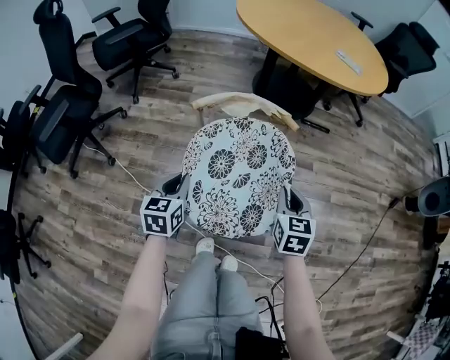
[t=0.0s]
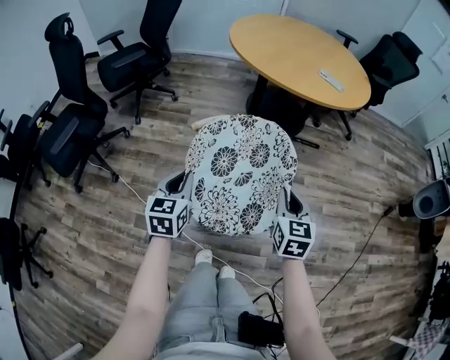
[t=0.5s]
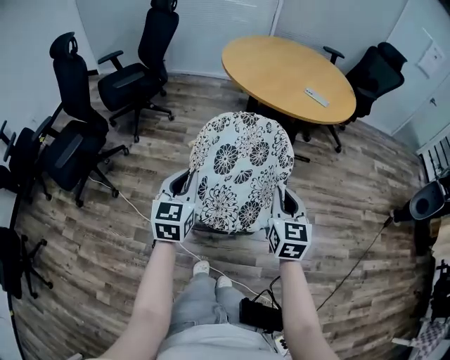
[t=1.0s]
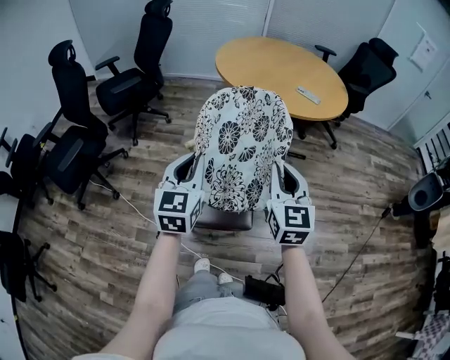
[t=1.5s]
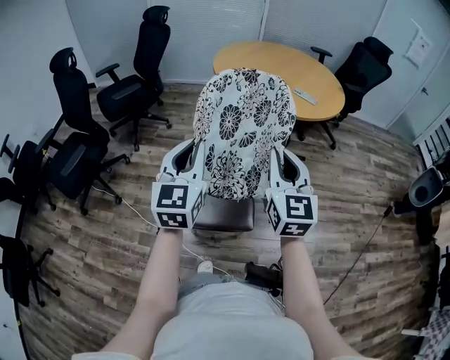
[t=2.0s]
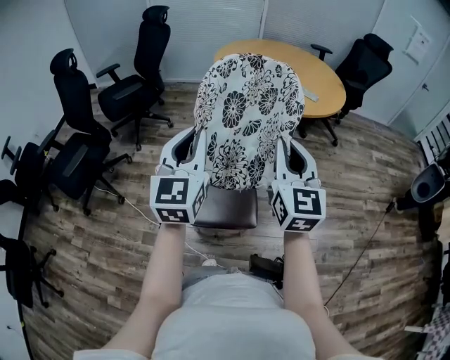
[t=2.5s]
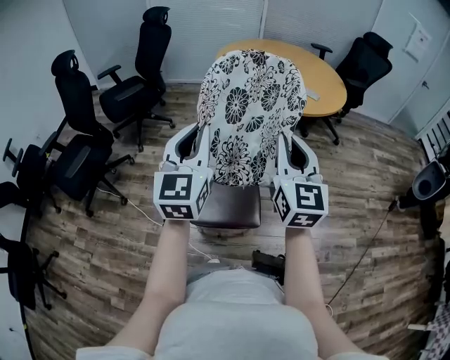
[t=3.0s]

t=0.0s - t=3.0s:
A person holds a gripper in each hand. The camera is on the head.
t=0.0s - t=1.5s: The two grippers go roughly 30 cm upward. The left gripper changes its angle by roughly 30 degrees; the right gripper changes its angle by approximately 30 degrees.
t=1.5s - t=3.0s: The grippers both shift upward by approximately 10 cm.

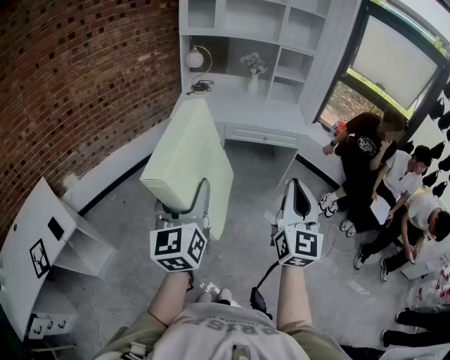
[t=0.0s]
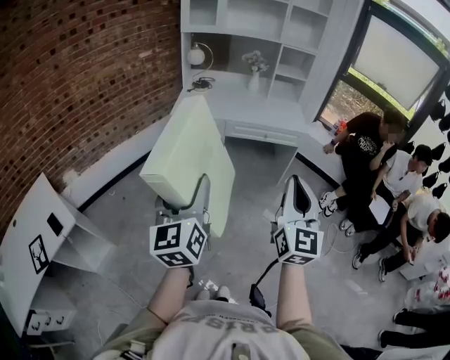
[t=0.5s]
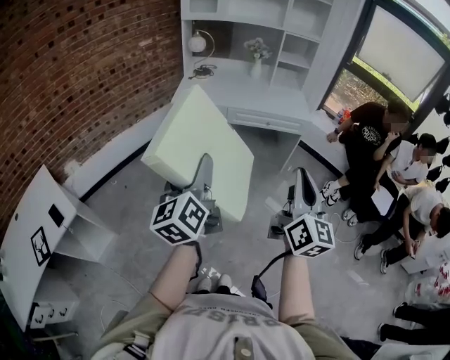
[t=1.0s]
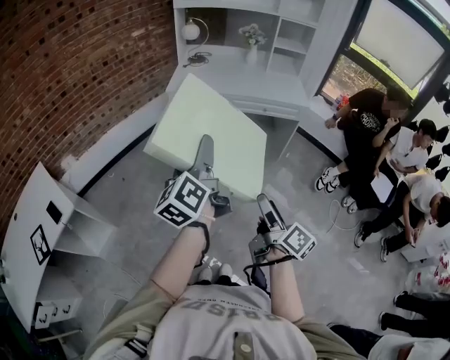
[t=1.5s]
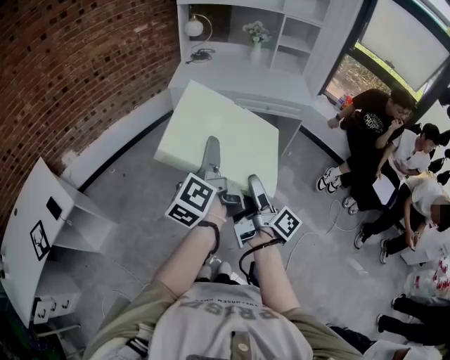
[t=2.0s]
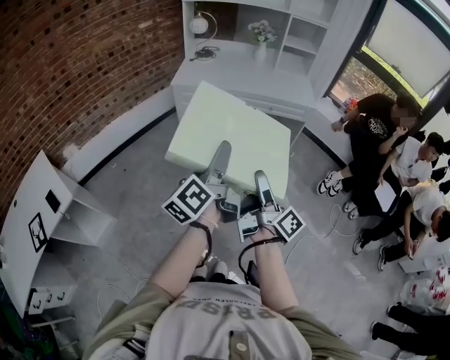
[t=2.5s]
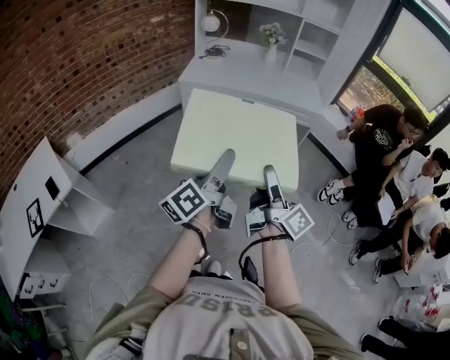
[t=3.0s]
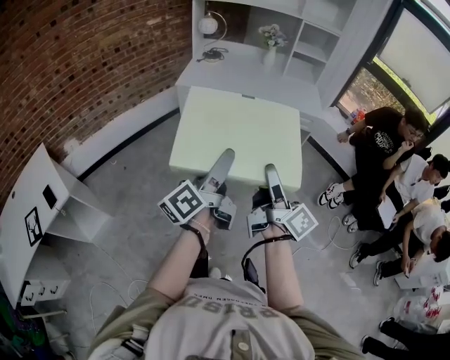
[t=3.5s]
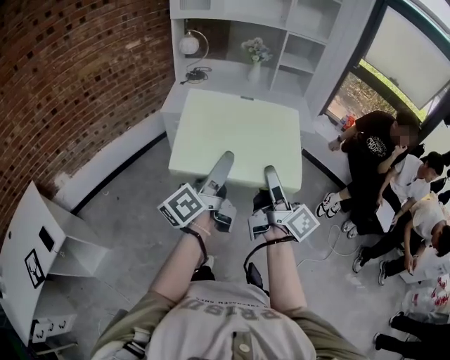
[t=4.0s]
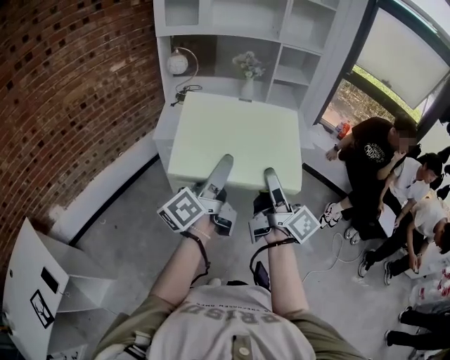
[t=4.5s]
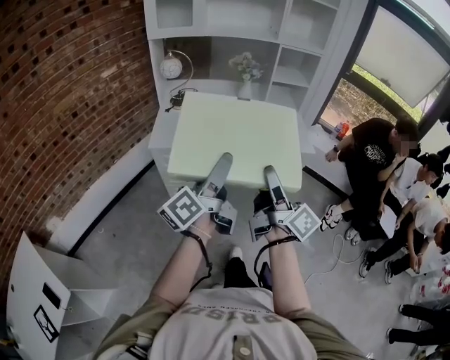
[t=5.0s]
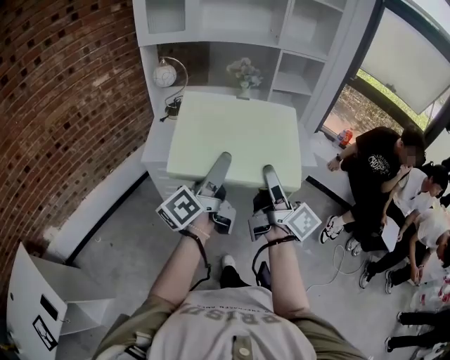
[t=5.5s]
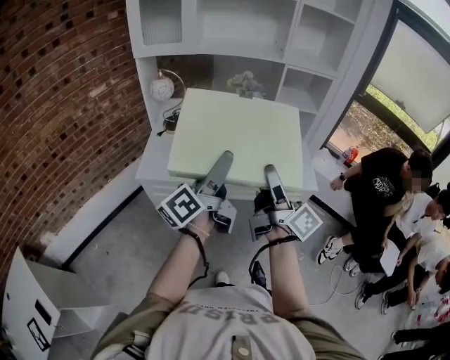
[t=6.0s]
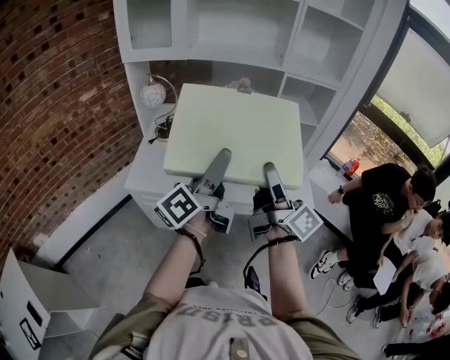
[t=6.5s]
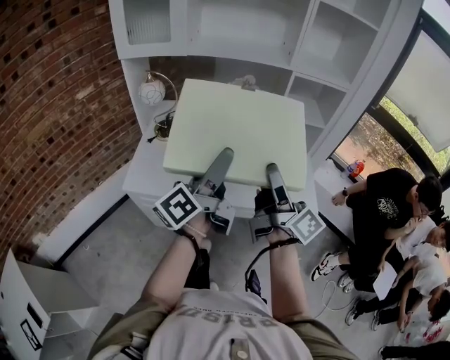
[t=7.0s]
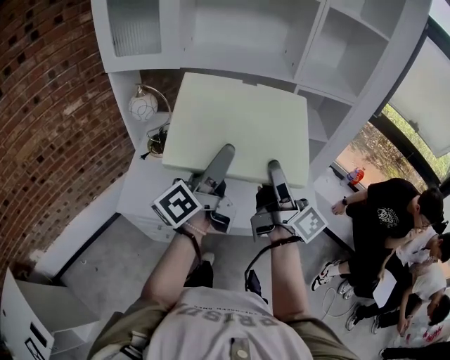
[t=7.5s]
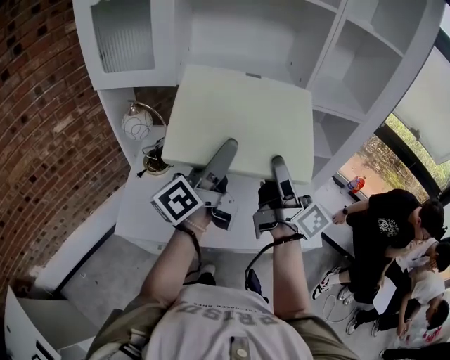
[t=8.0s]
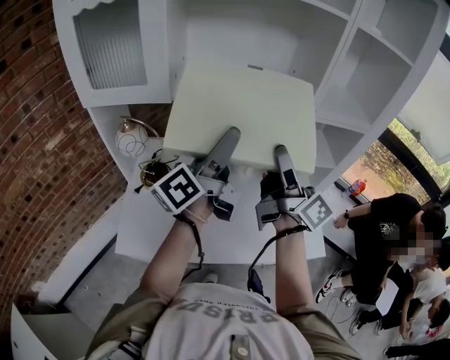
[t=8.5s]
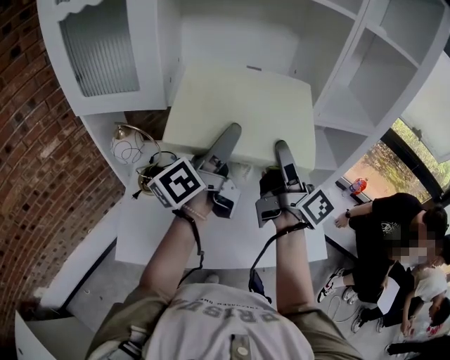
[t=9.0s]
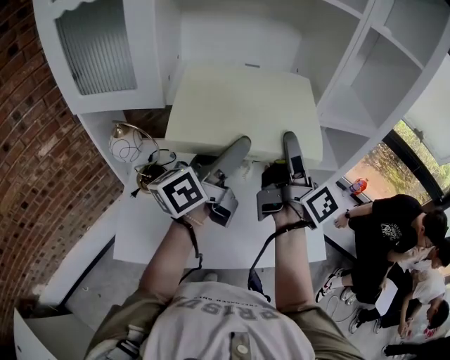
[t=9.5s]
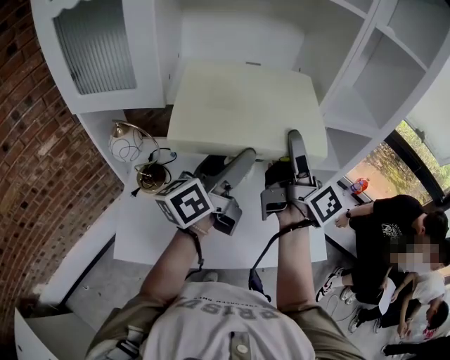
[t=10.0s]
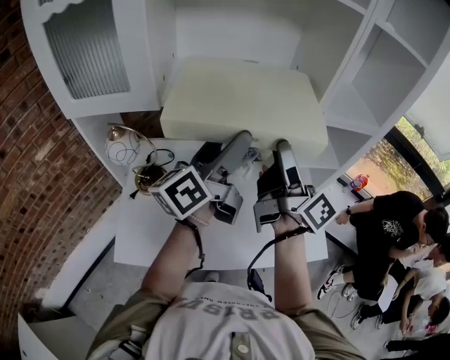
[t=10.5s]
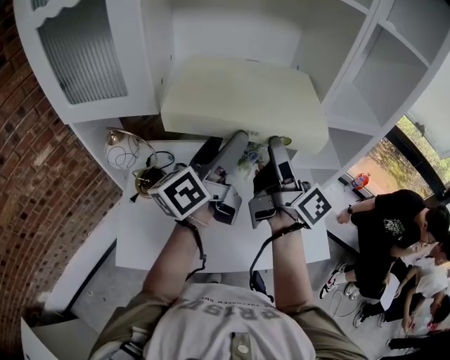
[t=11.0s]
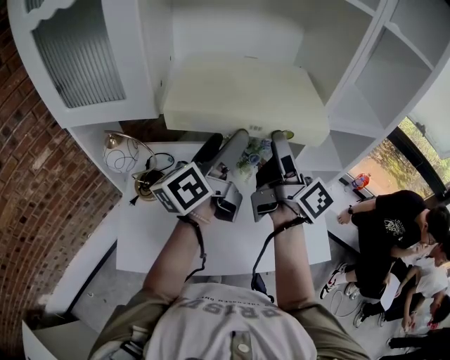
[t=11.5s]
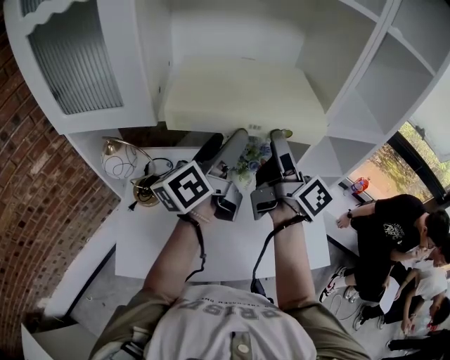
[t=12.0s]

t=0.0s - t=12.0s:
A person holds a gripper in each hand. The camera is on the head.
t=0.0s - t=2.0s: The right gripper shifts about 20 cm downward and to the left, rotates around the line of its fingers by some 90 degrees, clockwise from behind, and opens up. The left gripper travels downward and forward by some 10 cm, and rolls counterclockwise, seen from behind, by approximately 50 degrees.
t=2.0s - t=4.0s: The right gripper shifts approximately 20 cm forward and upward, and changes its angle by roughly 20 degrees; the left gripper shifts about 15 cm forward and to the right, and swivels roughly 30 degrees.
t=4.0s - t=6.0s: Both grippers travel together forward, about 35 cm.
t=6.0s - t=8.0s: The grippers both shift forward by roughly 30 cm.
t=8.0s - t=10.0s: The two grippers go roughly 10 cm forward.
t=10.0s - t=12.0s: Both grippers travel together forward, roughly 5 cm.

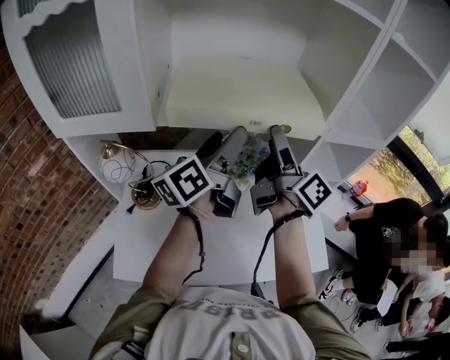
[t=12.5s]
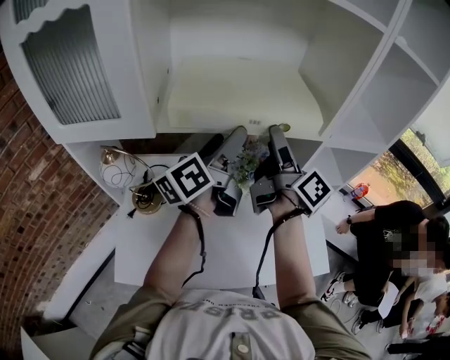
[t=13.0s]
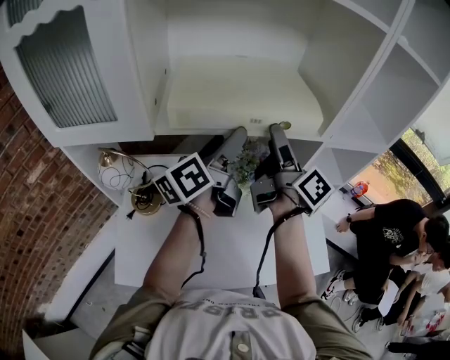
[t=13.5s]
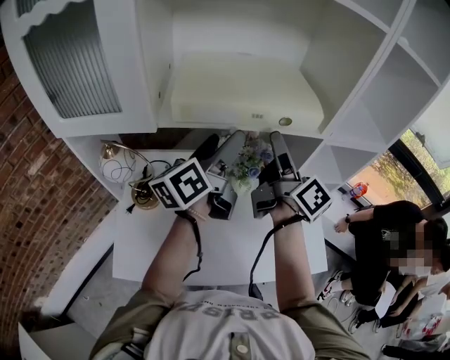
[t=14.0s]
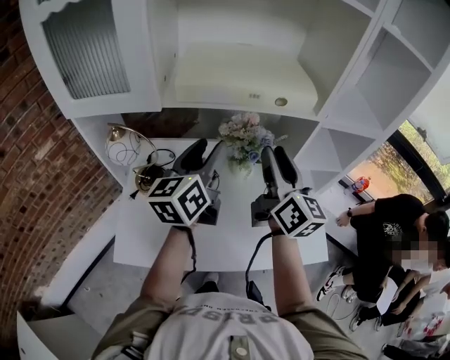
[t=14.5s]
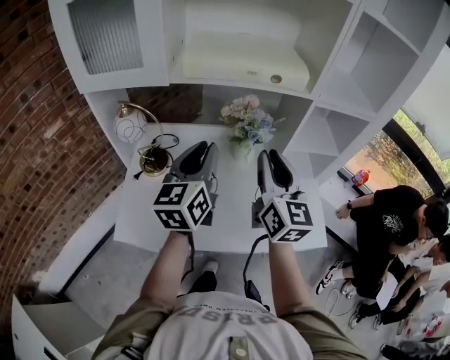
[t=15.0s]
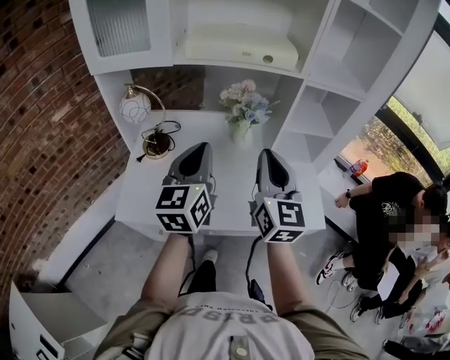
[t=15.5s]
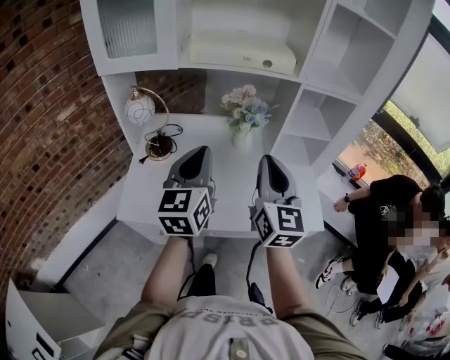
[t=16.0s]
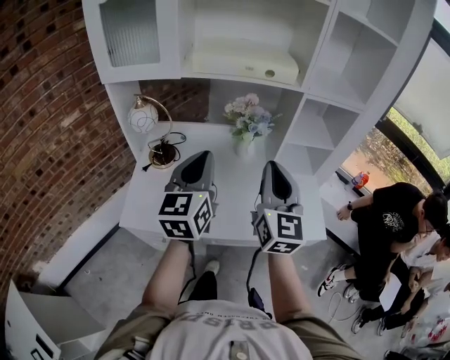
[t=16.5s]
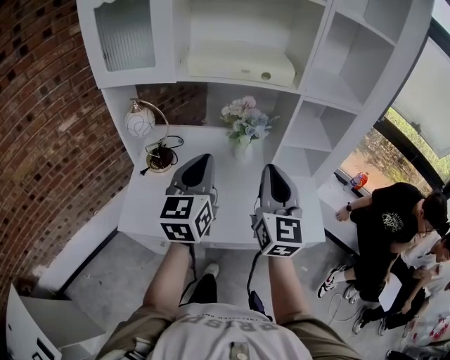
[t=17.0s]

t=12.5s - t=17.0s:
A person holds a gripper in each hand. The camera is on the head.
t=12.5s - t=14.5s: Both grippers travel together backward, roughly 5 cm. The left gripper turns by some 30 degrees, and closes up. The right gripper changes its angle by some 40 degrees, and closes up.
t=14.5s - t=17.0s: Both grippers move backward, approximately 20 cm. The right gripper rotates roughly 30 degrees, while the left gripper changes its angle by some 20 degrees, and closes its fingers.

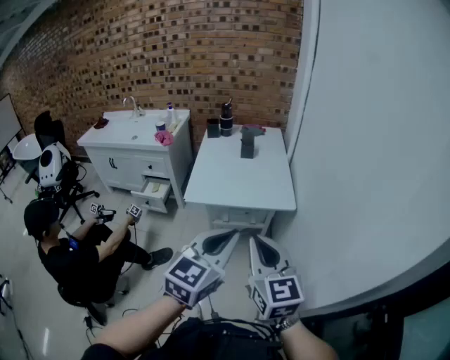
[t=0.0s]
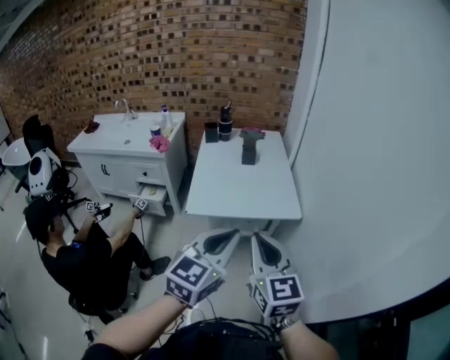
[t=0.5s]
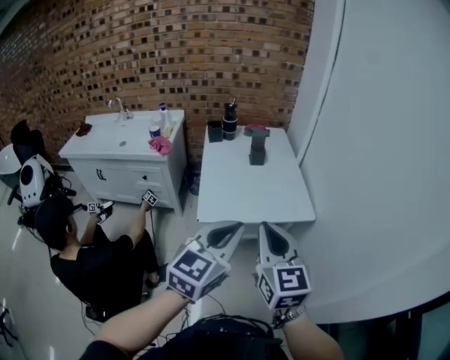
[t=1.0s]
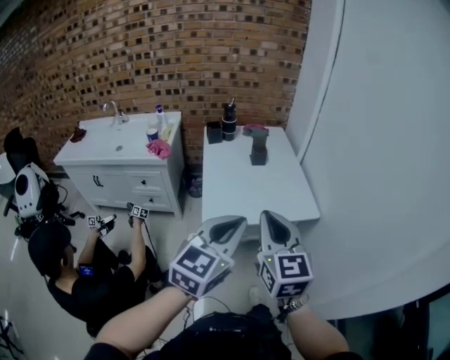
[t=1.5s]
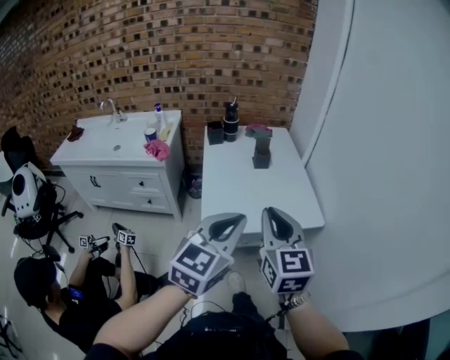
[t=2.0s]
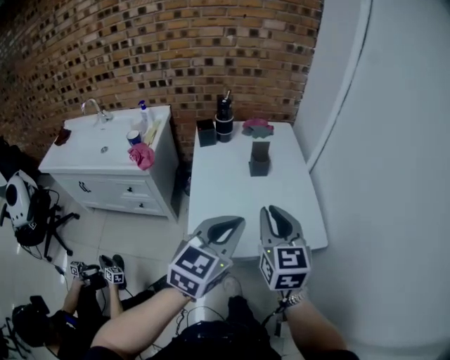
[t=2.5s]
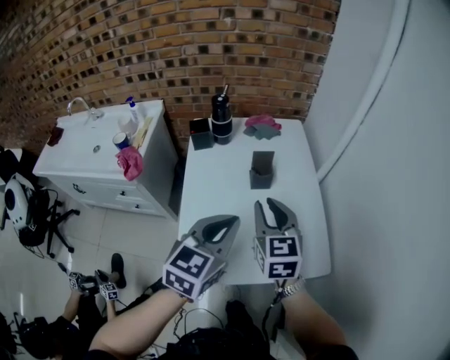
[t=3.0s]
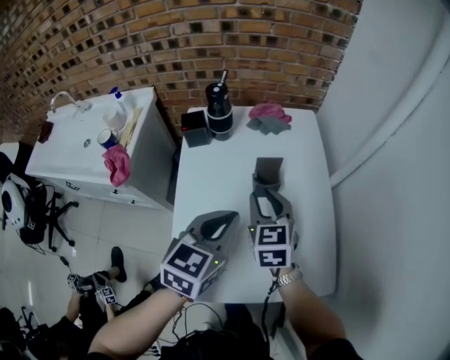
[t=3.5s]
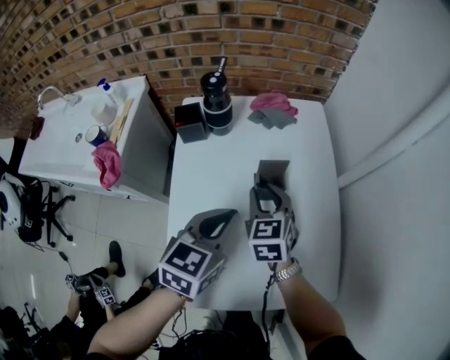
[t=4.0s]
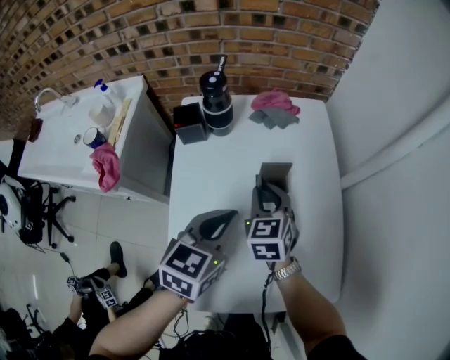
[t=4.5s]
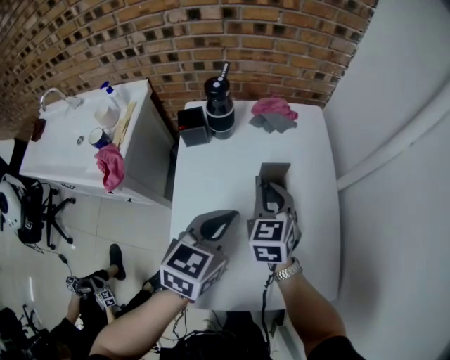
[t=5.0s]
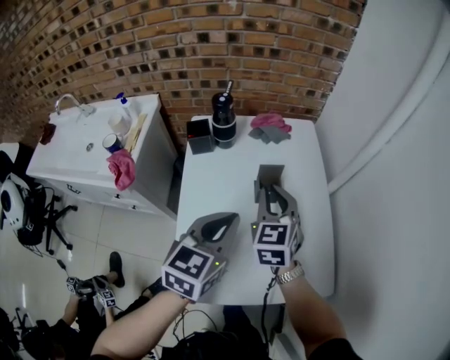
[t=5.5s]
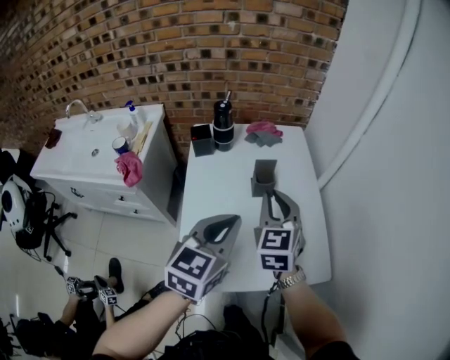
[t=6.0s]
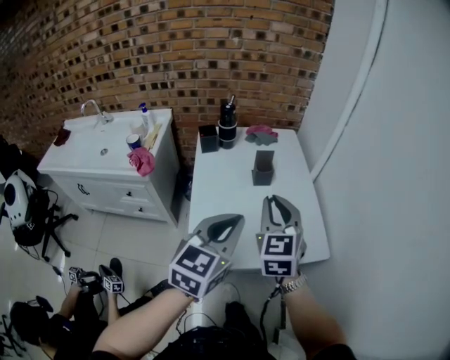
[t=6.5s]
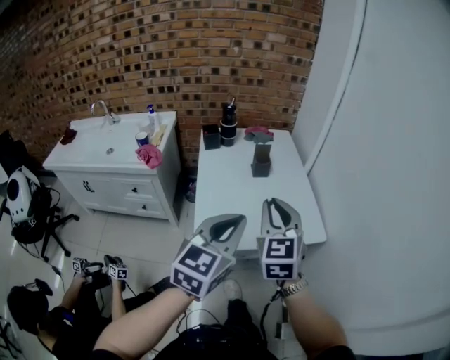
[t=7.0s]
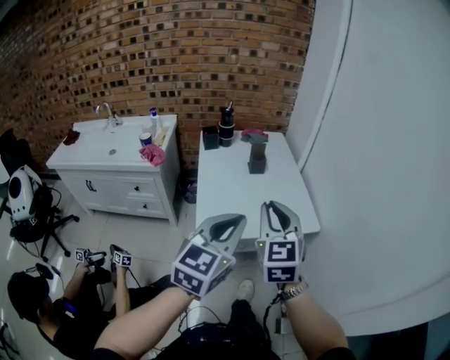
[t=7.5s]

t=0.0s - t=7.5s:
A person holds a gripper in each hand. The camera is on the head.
t=0.0s - t=2.0s: The left gripper travels to the left and forward by roughly 30 cm, while the right gripper heads forward and to the left, covering roughly 30 cm.
t=2.0s - t=4.0s: The pair of grippers is taken forward, some 50 cm. The left gripper swivels roughly 30 degrees, while the right gripper goes approximately 25 cm downward, turns by about 30 degrees, and opens.
t=4.0s - t=5.5s: The left gripper moves upward and backward, approximately 10 cm. The right gripper travels upward by approximately 10 cm.
t=5.5s - t=7.5s: The two grippers travel together, backward, some 40 cm.
